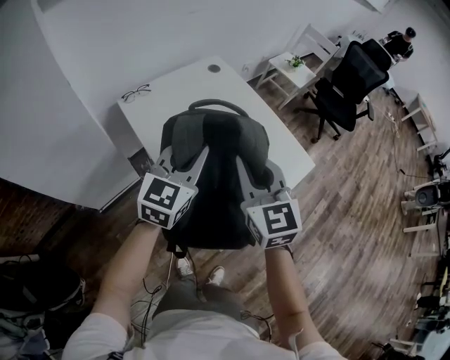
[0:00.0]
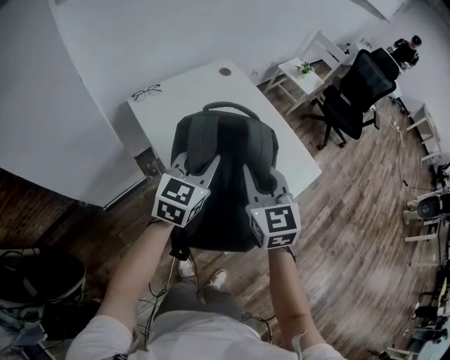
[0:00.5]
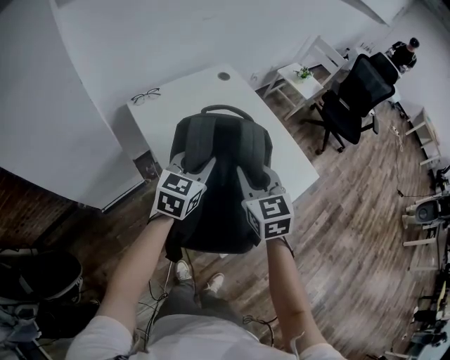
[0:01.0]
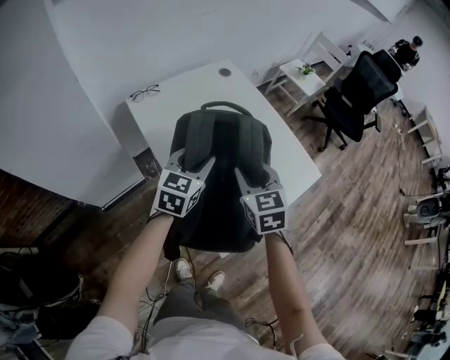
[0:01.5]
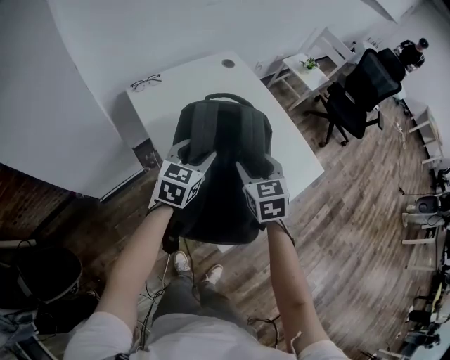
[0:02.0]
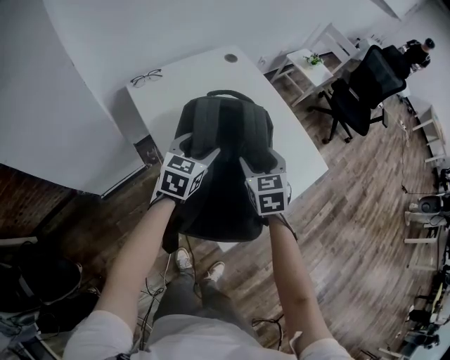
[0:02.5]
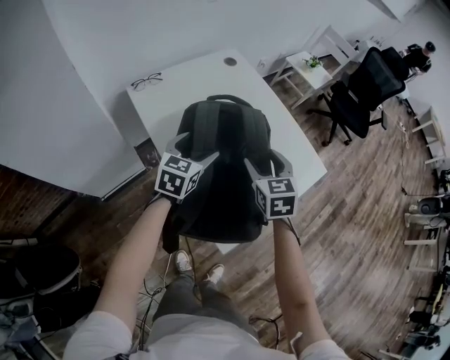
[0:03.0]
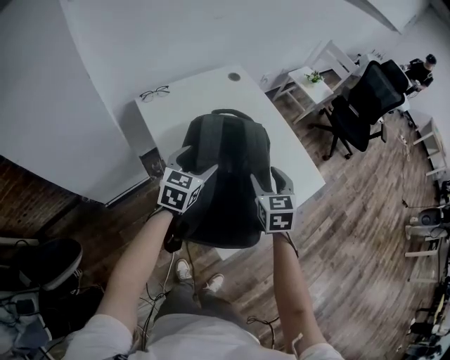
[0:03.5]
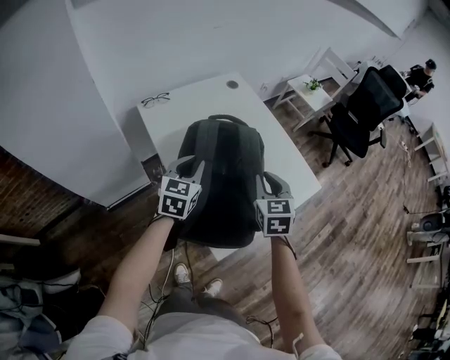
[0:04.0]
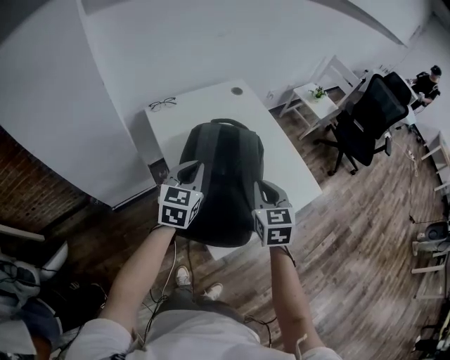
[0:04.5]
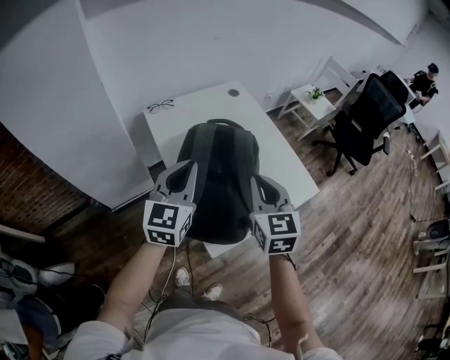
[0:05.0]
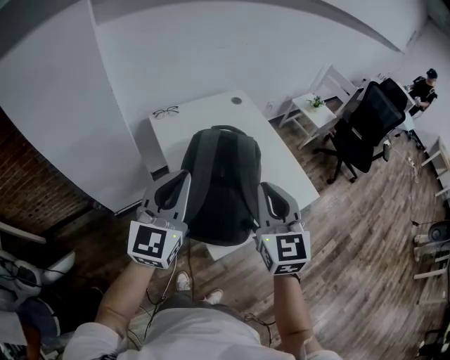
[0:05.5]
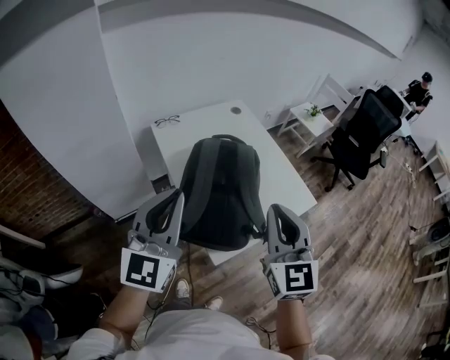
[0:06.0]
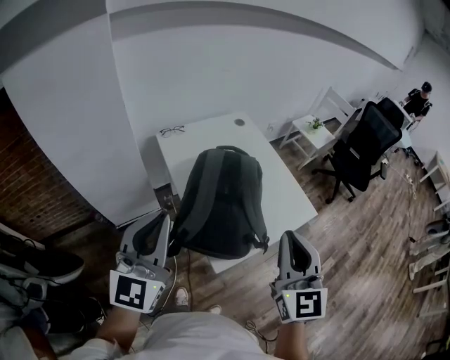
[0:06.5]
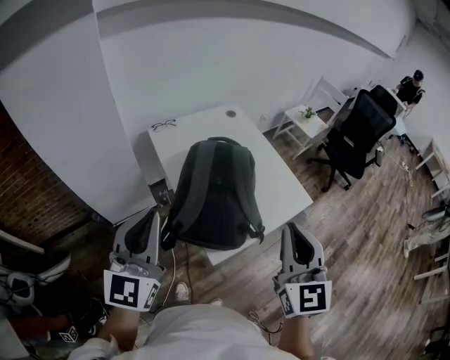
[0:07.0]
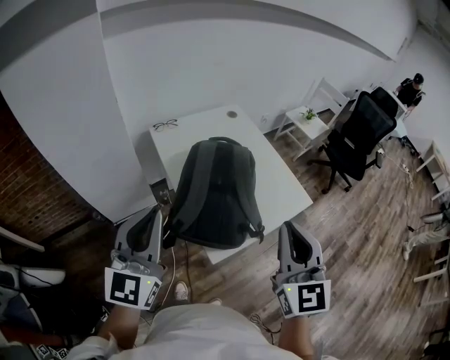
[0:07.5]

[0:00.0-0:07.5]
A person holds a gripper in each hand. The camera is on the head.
0:00.0 to 0:02.0: Both grippers move downward, roughly 15 cm. The right gripper turns by some 20 degrees, and opens its fingers. The left gripper opens its fingers.
0:02.0 to 0:04.0: The left gripper closes up; the right gripper moves to the right, approximately 5 cm, and closes up.
0:04.0 to 0:05.5: Both grippers move upward and backward, about 25 cm. The right gripper rotates approximately 20 degrees. Meanwhile the left gripper changes its angle by about 30 degrees.
0:05.5 to 0:07.5: Both grippers travel together backward and upward, approximately 15 cm.

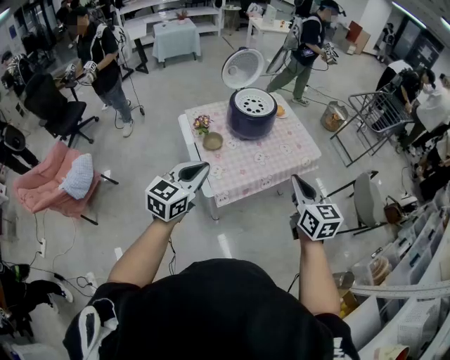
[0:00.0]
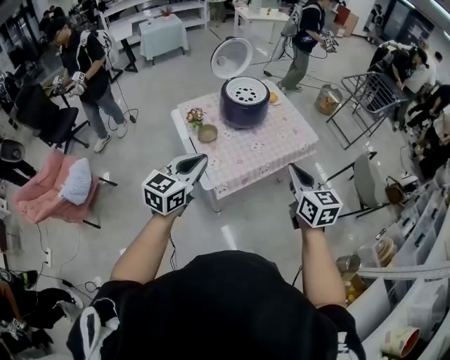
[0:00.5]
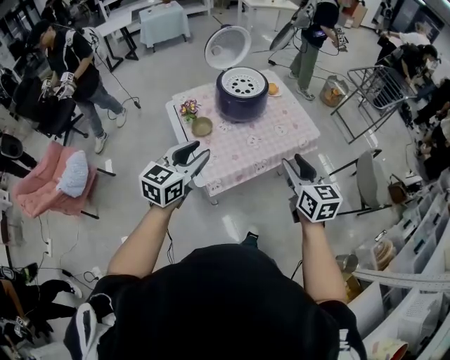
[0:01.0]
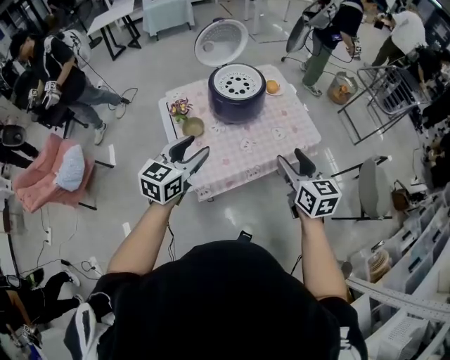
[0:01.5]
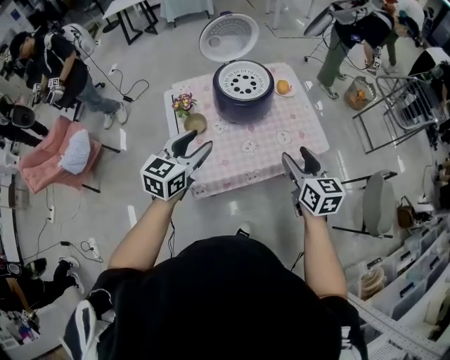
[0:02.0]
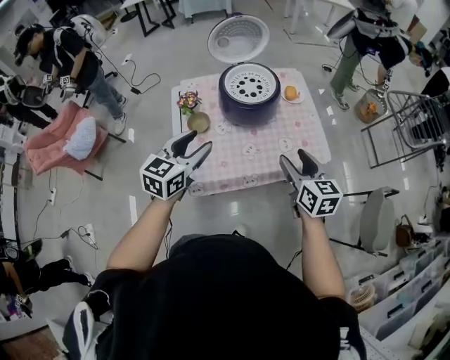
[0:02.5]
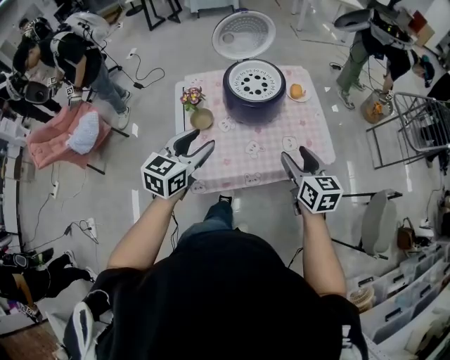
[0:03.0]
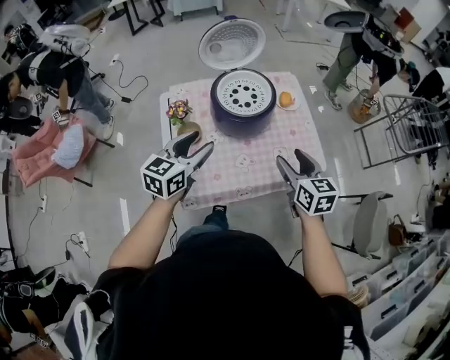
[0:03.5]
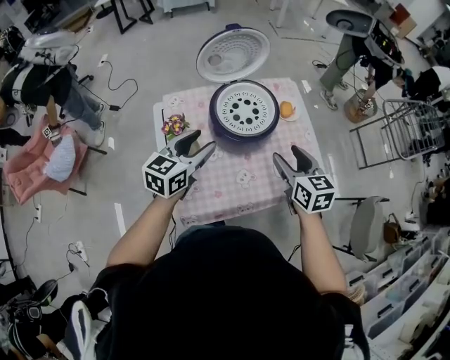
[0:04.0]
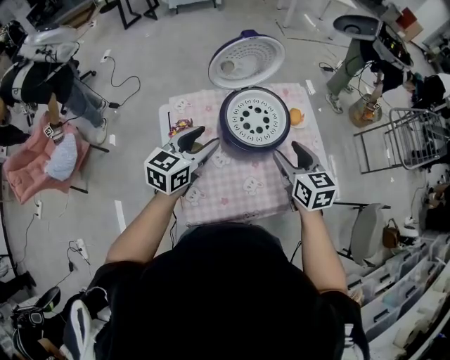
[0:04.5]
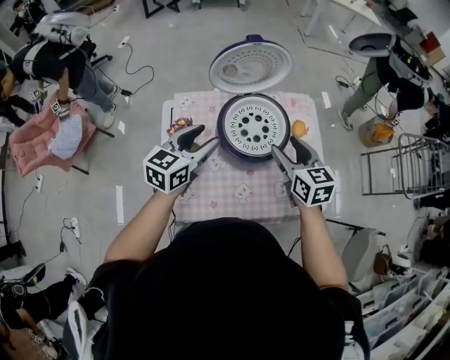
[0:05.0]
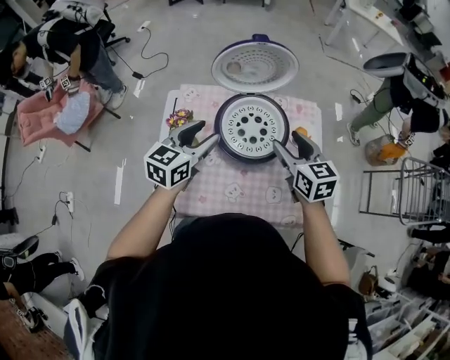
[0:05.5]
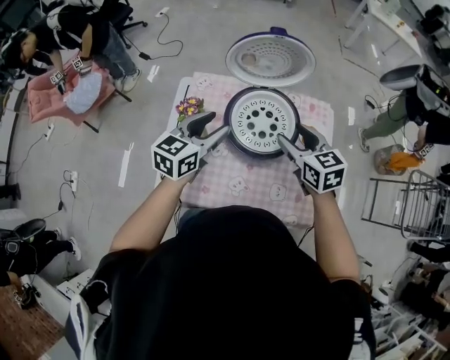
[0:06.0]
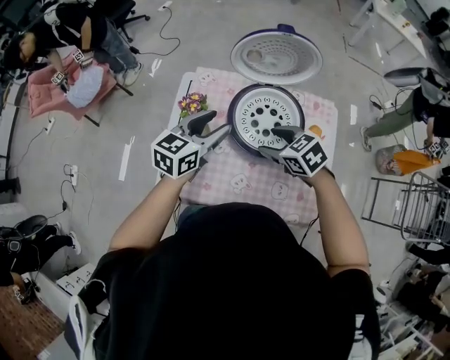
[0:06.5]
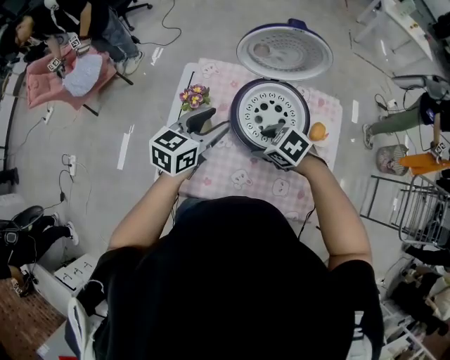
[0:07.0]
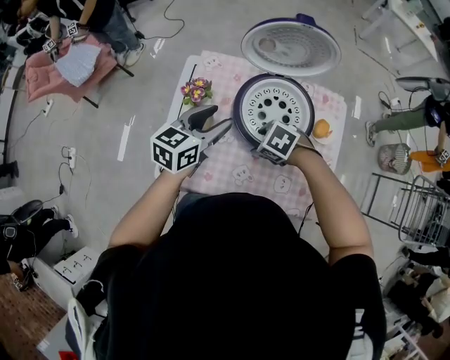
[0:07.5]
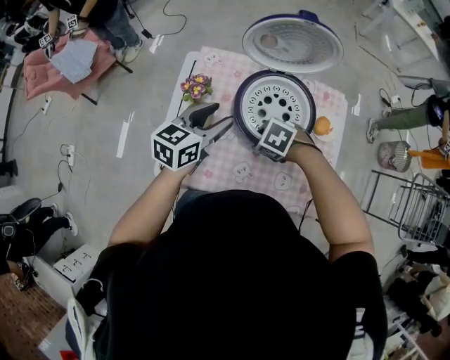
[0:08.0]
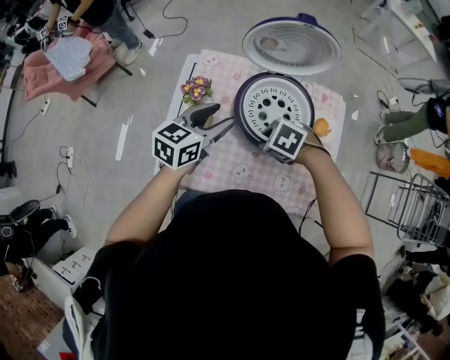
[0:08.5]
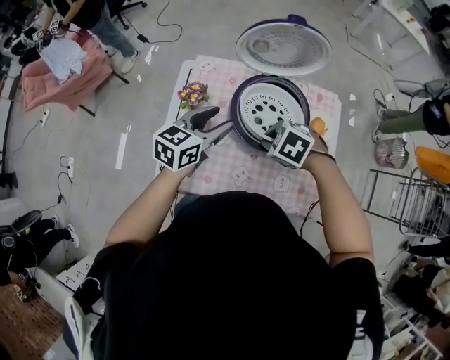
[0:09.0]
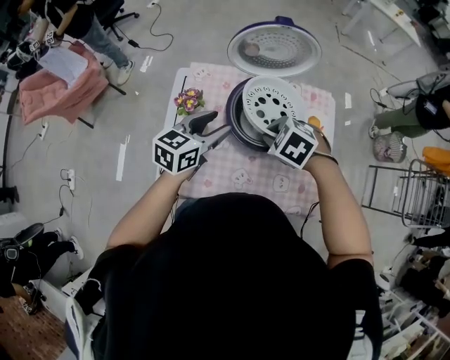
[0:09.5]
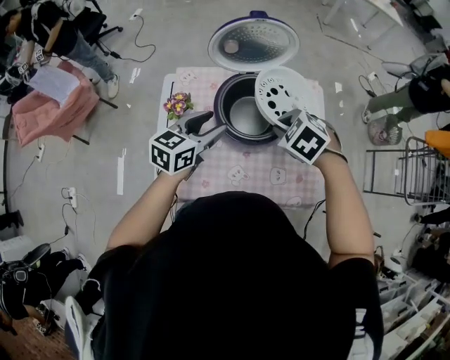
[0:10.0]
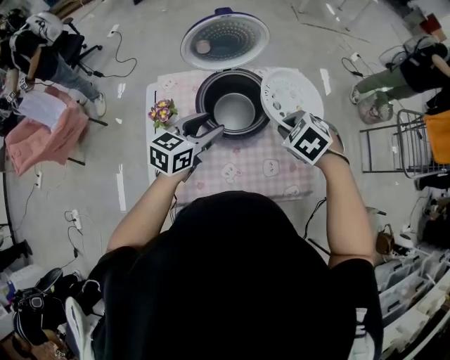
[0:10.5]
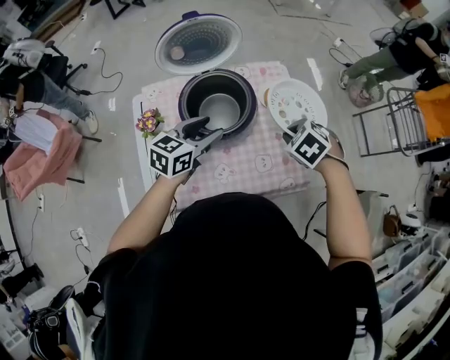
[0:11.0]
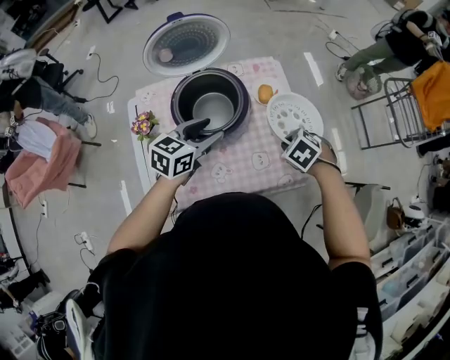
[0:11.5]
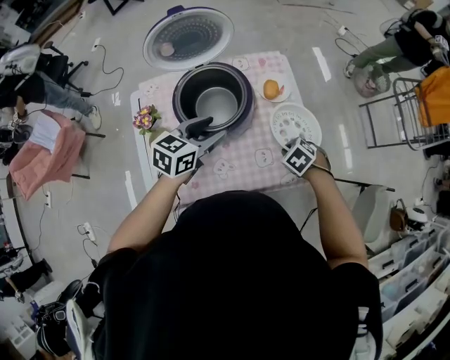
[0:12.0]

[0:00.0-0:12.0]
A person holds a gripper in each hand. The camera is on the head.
0:00.0 to 0:02.0: Both grippers move forward and to the right, about 25 cm. The right gripper opens its fingers. Meanwhile the left gripper opens its fingers.
0:02.0 to 0:04.0: The grippers both shift forward by roughly 20 cm.
0:04.0 to 0:06.0: The left gripper is displaced forward by some 10 cm, while the right gripper is displaced forward by approximately 15 cm, and turns by approximately 30 degrees.
0:06.0 to 0:08.0: The left gripper moves downward, approximately 5 cm. Meanwhile the right gripper heads downward, covering roughly 15 cm, and points its fingers some 40 degrees further downward.
0:08.0 to 0:10.0: The right gripper moves upward, about 15 cm, rotates some 30 degrees, and closes its fingers; the left gripper ends up roughly 5 cm from where it was.
0:10.0 to 0:12.0: The left gripper moves roughly 15 cm; the right gripper ends up some 30 cm from where it was, and rotates some 30 degrees.

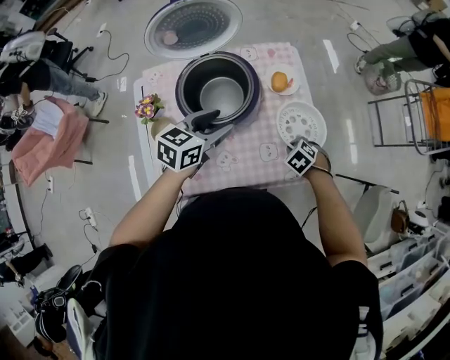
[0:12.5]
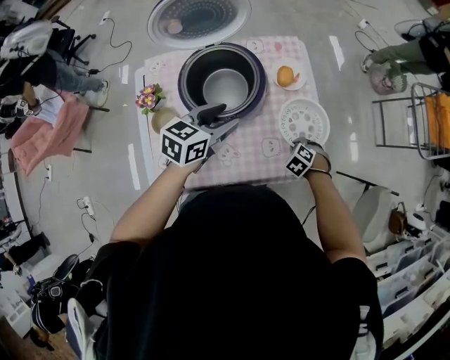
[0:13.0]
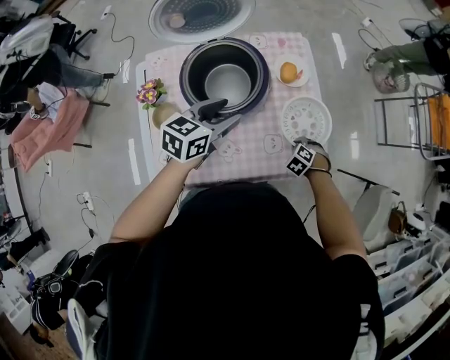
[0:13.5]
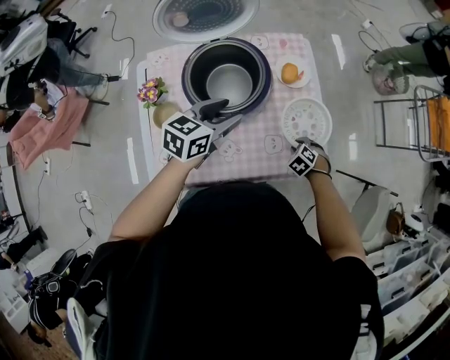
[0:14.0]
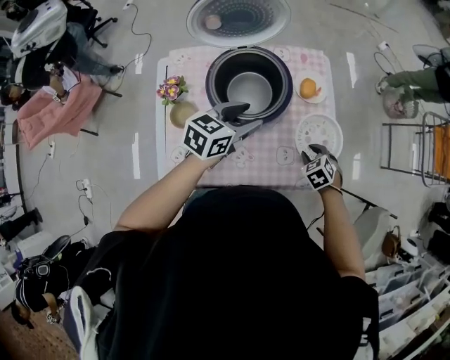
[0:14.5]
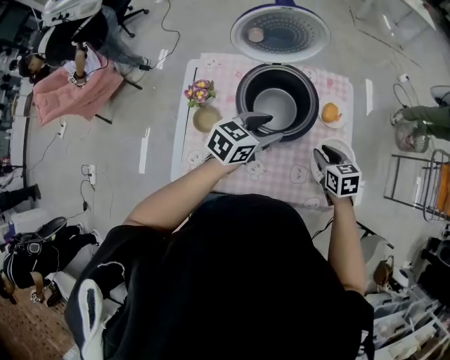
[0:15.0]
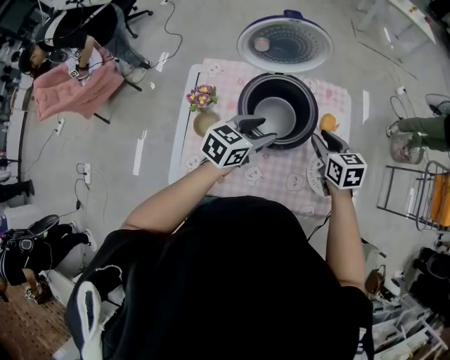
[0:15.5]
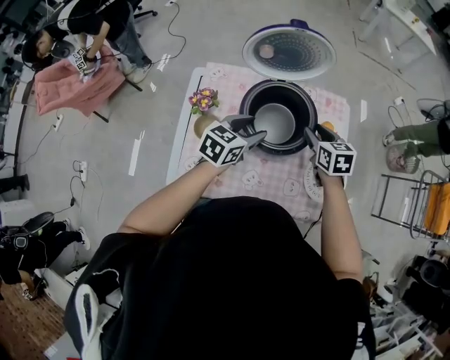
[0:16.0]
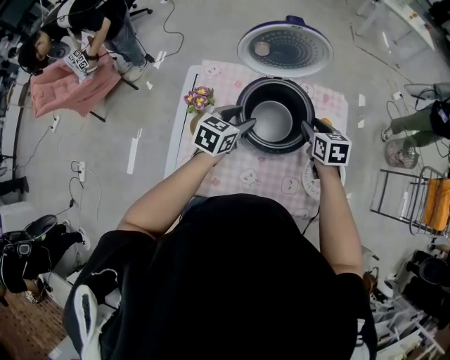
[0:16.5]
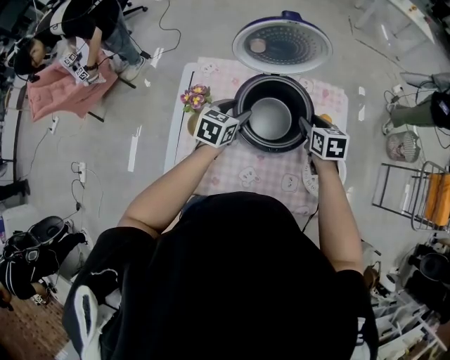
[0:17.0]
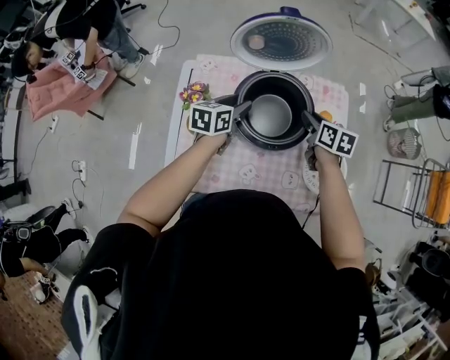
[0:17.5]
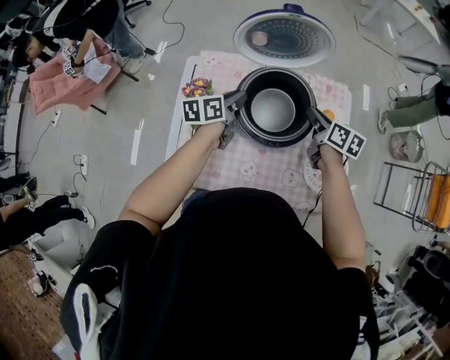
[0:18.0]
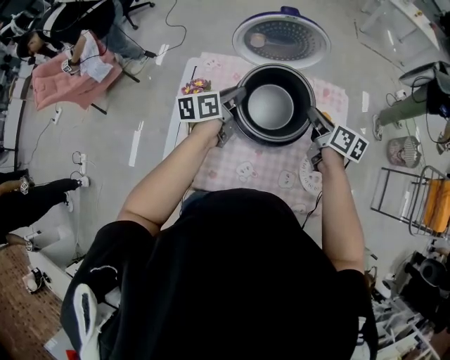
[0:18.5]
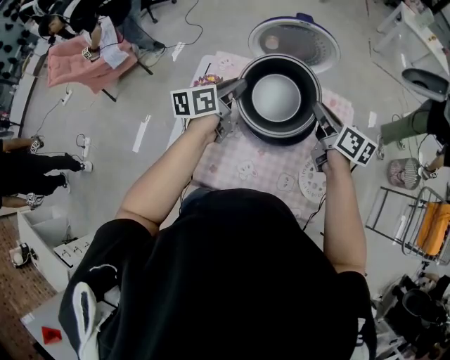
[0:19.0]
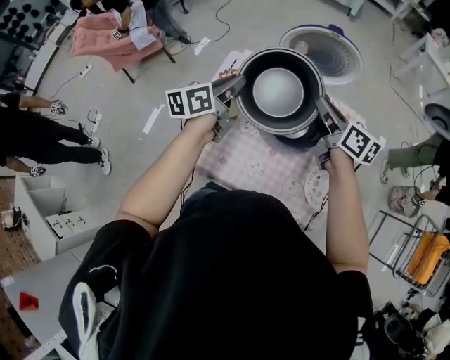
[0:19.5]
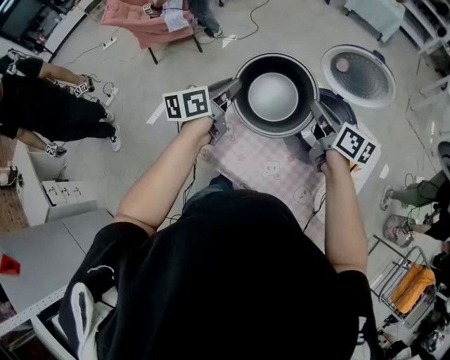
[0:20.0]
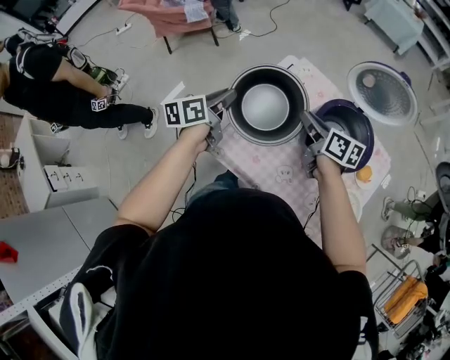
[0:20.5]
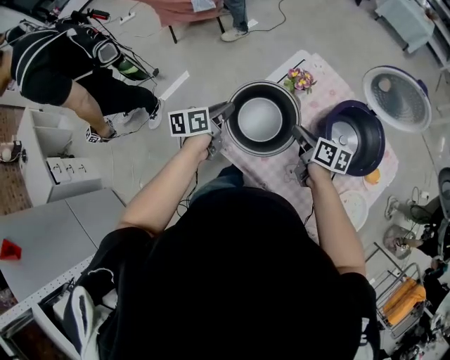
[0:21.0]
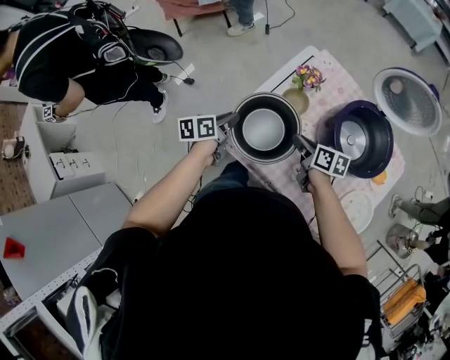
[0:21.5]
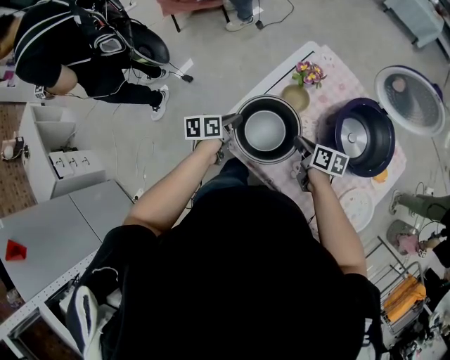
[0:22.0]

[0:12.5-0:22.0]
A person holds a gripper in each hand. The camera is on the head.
0:12.5 to 0:14.5: The right gripper goes downward and returns, roughly 5 cm each way.
0:14.5 to 0:16.5: The left gripper travels to the left by approximately 15 cm; the right gripper moves forward, to the left and upward, some 30 cm, and changes its angle by roughly 30 degrees.
0:16.5 to 0:18.0: The right gripper swivels approximately 30 degrees, and closes. The left gripper changes place by roughly 5 cm, changes its angle by roughly 30 degrees, and closes.
0:18.0 to 0:20.0: The right gripper shifts by roughly 25 cm, and rotates roughly 30 degrees. Meanwhile the left gripper moves roughly 30 cm, and changes its angle by about 30 degrees.
0:20.0 to 0:22.0: The two grippers go approximately 30 cm downward and to the left. The right gripper swivels some 30 degrees; the left gripper swivels about 30 degrees.
